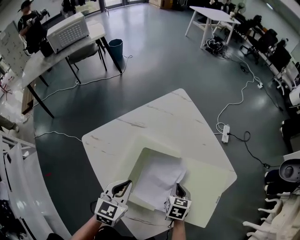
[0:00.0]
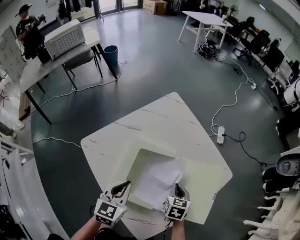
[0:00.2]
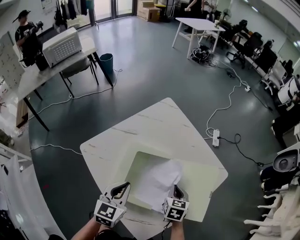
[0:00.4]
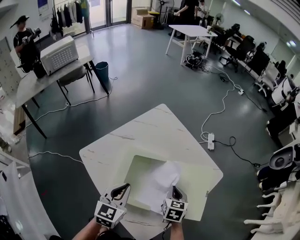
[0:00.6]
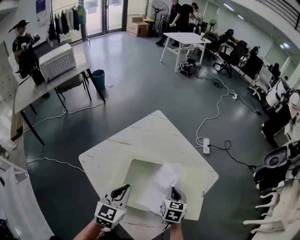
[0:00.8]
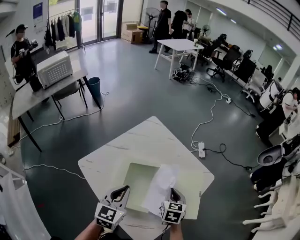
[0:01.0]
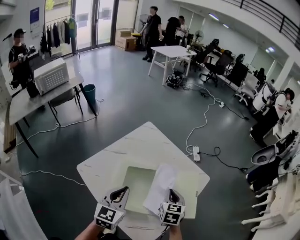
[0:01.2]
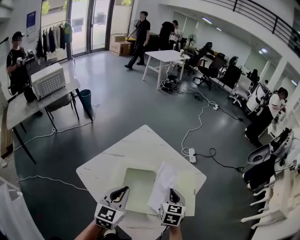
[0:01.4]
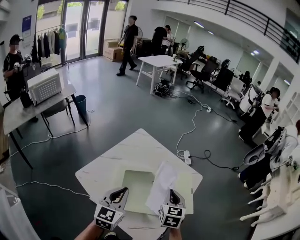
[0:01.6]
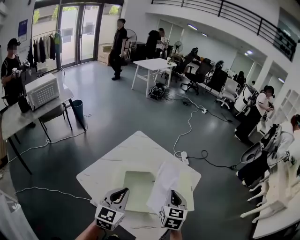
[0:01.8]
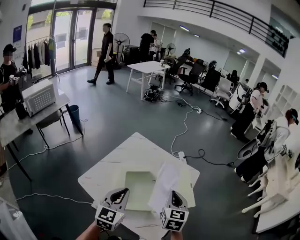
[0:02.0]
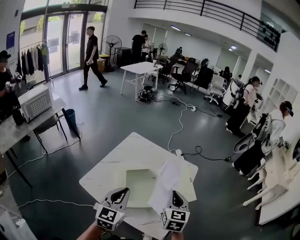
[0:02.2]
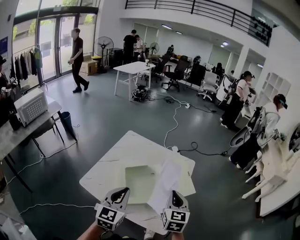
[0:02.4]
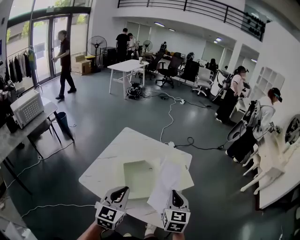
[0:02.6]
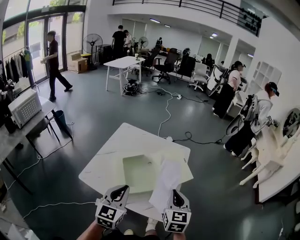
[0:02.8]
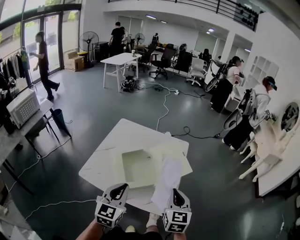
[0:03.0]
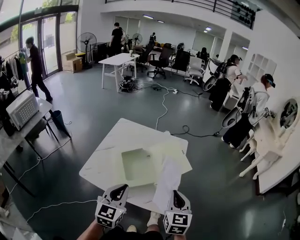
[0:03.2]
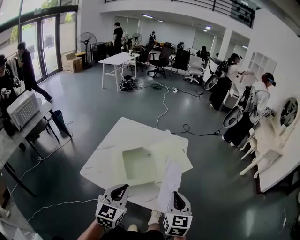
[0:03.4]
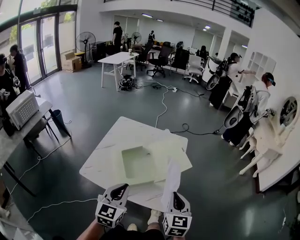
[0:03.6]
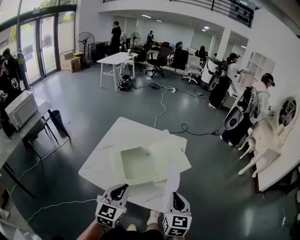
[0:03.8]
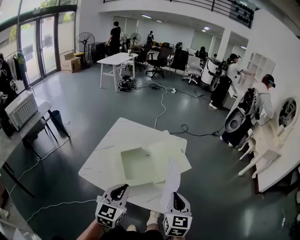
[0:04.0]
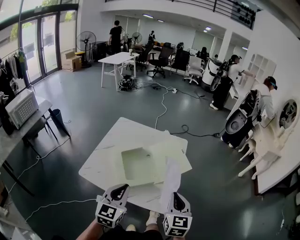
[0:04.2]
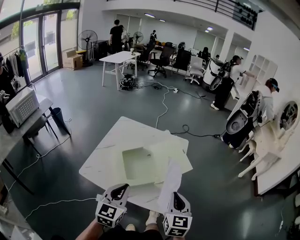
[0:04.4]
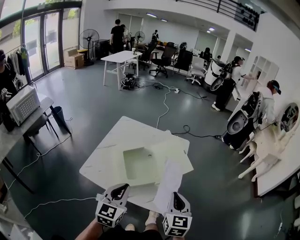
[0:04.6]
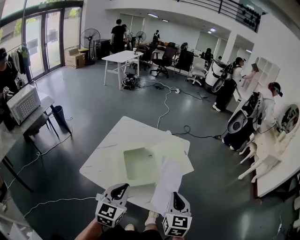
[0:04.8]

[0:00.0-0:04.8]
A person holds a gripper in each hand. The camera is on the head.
0:00.0 to 0:01.6: The two grippers go approximately 25 cm upward. The left gripper changes its angle by approximately 20 degrees, while the right gripper rotates approximately 30 degrees.
0:01.6 to 0:03.2: The right gripper shifts roughly 30 cm backward. The left gripper travels backward by some 20 cm.
0:03.2 to 0:04.8: There are only small adjustments of the grippers.

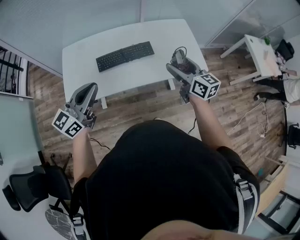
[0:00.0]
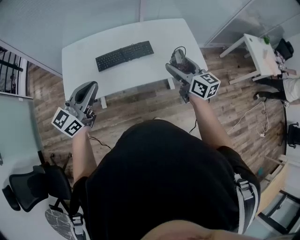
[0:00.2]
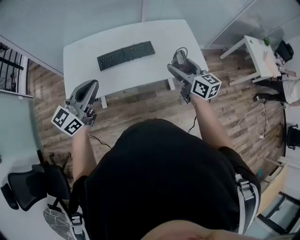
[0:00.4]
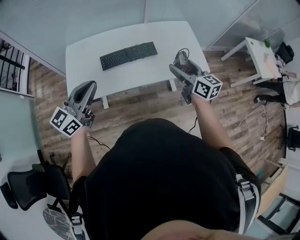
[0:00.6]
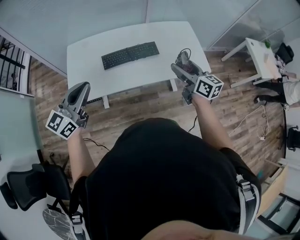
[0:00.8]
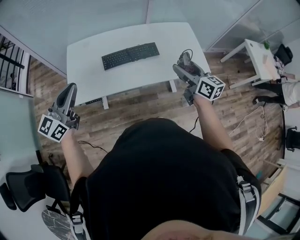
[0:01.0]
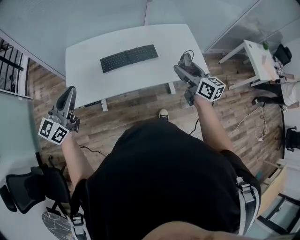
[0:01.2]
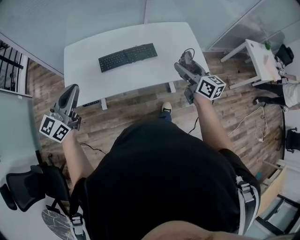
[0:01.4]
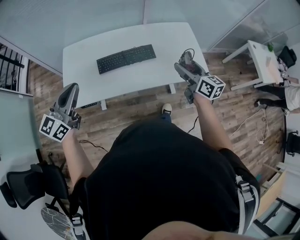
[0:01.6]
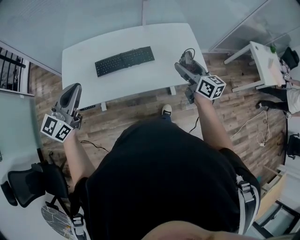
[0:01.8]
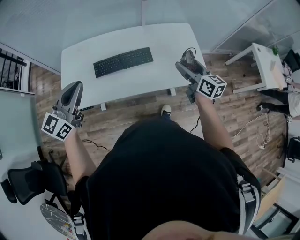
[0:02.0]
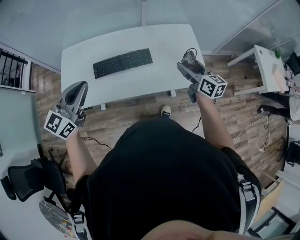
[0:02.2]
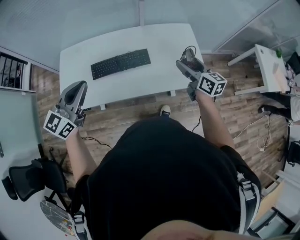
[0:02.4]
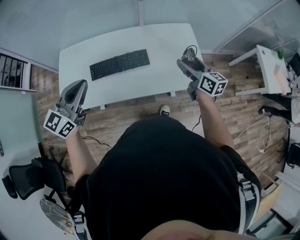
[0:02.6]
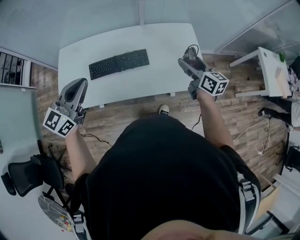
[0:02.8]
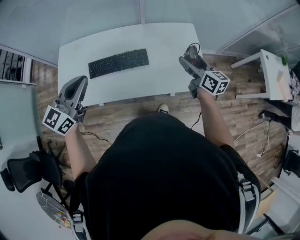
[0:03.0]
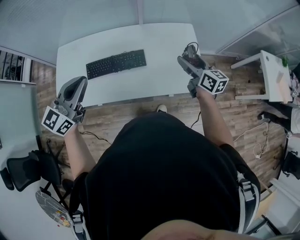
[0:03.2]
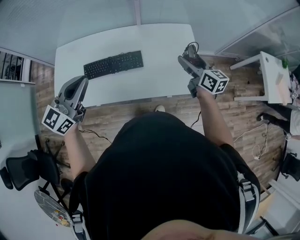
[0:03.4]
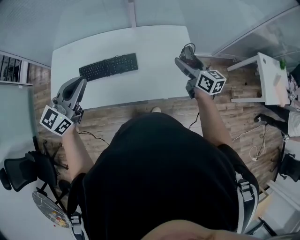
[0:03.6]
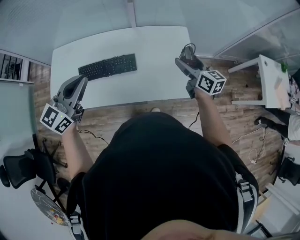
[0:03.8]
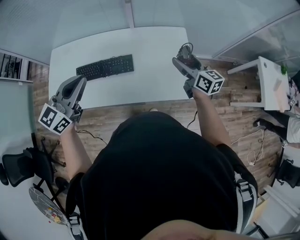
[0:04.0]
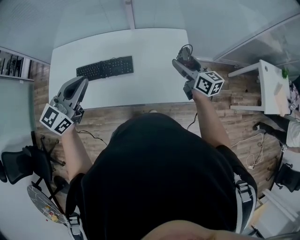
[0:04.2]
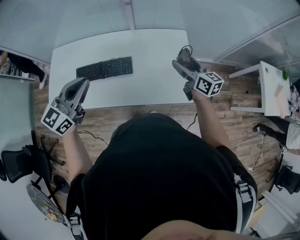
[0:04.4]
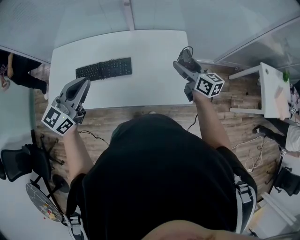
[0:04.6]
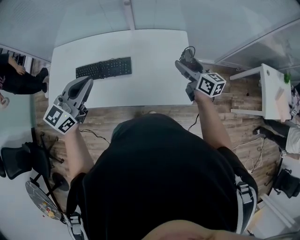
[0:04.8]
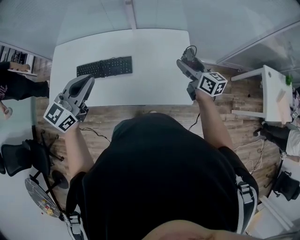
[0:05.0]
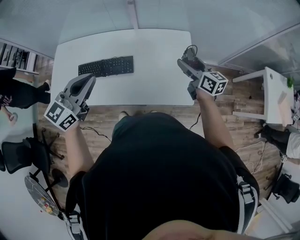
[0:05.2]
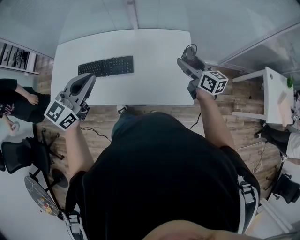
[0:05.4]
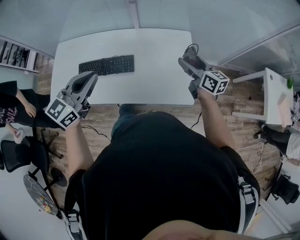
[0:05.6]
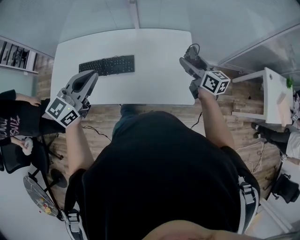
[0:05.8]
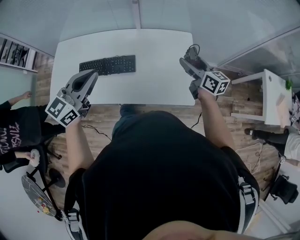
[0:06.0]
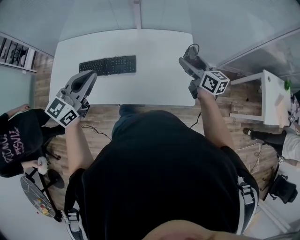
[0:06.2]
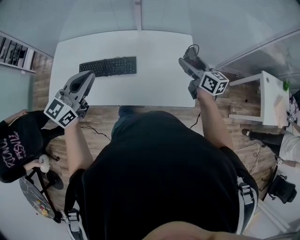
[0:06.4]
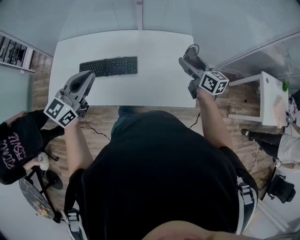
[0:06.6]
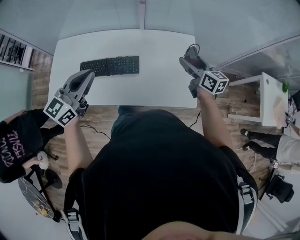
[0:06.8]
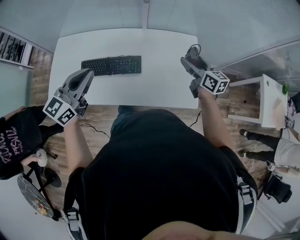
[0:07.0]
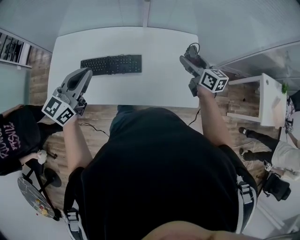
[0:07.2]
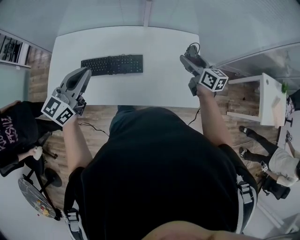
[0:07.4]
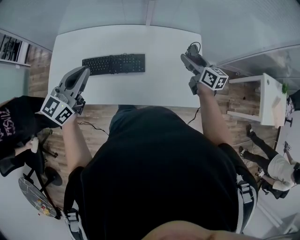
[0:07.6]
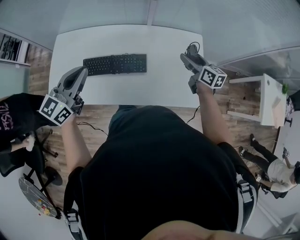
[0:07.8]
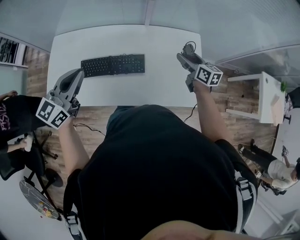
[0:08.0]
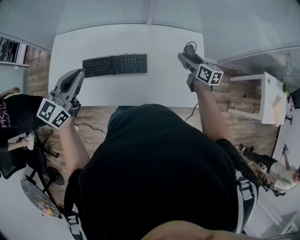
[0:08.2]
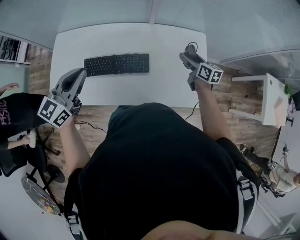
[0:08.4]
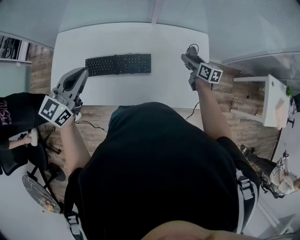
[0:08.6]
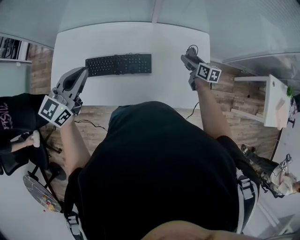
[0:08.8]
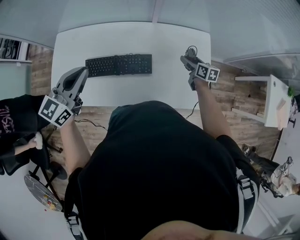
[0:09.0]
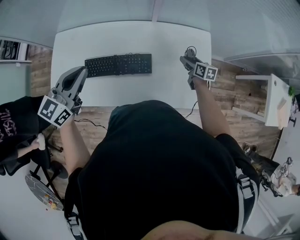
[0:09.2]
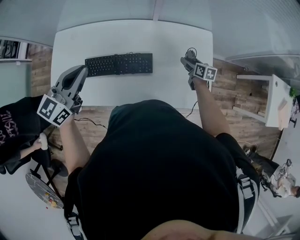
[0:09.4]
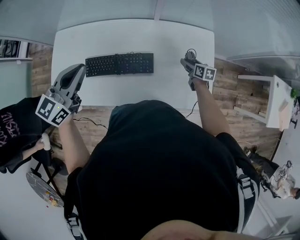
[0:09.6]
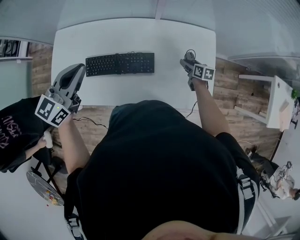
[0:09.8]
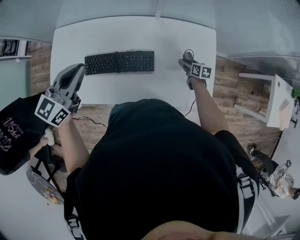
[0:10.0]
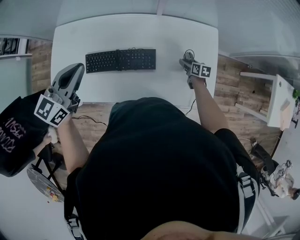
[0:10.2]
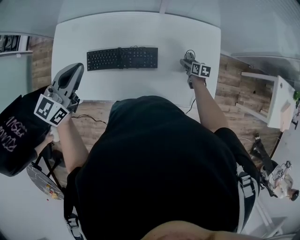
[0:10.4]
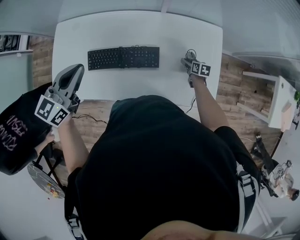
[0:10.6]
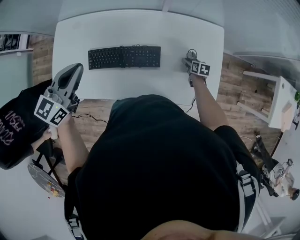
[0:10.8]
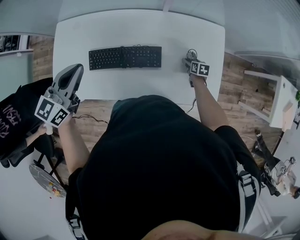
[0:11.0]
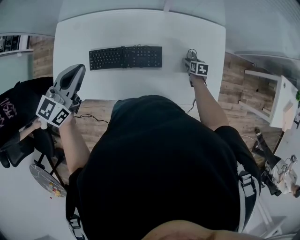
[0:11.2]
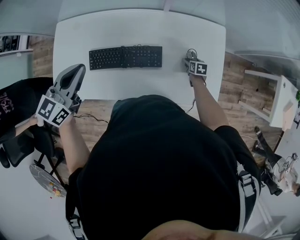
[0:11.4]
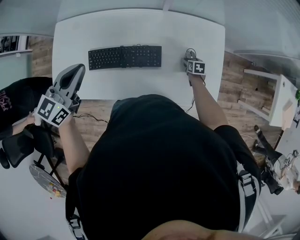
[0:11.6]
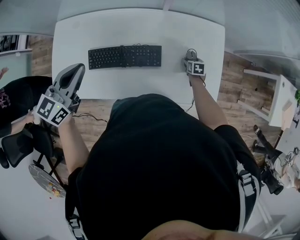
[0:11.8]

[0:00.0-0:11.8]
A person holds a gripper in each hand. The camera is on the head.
0:00.0 to 0:01.4: The left gripper moves to the left, roughly 10 cm.
0:01.4 to 0:03.0: The left gripper goes some 25 cm to the right and forward. Meanwhile the right gripper goes roughly 25 cm forward and to the right.
0:03.0 to 0:04.4: The right gripper moves to the right and forward, some 15 cm. Meanwhile the left gripper heads to the right, covering some 15 cm.
0:04.4 to 0:06.0: The grippers move only a little.
0:06.0 to 0:07.4: The grippers both shift to the left and forward by approximately 15 cm.
0:07.4 to 0:08.8: The right gripper heads downward and forward, covering approximately 15 cm.
0:08.8 to 0:10.4: The left gripper moves roughly 5 cm. Meanwhile the right gripper travels downward by approximately 20 cm, and changes its angle by about 20 degrees.
0:10.4 to 0:11.8: There are only small adjustments of the grippers.

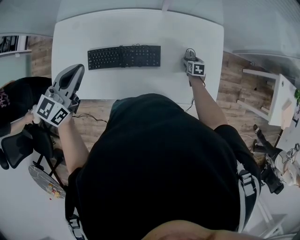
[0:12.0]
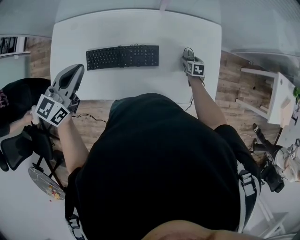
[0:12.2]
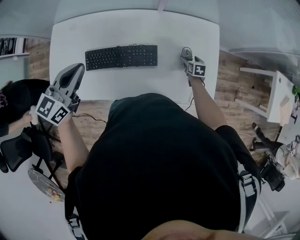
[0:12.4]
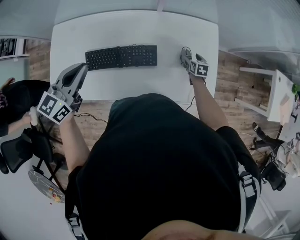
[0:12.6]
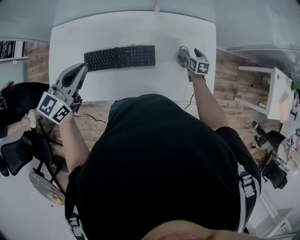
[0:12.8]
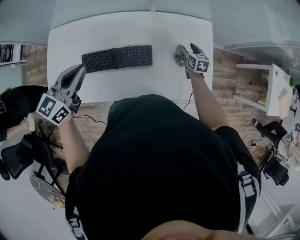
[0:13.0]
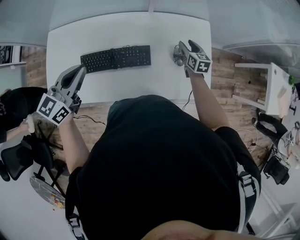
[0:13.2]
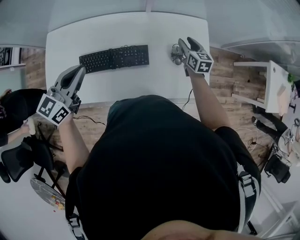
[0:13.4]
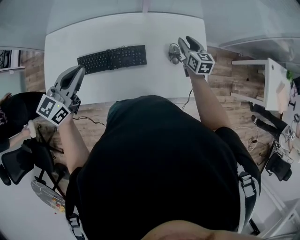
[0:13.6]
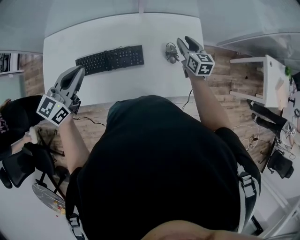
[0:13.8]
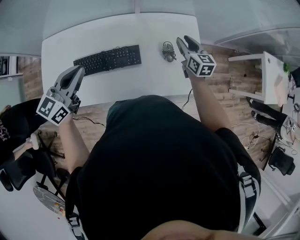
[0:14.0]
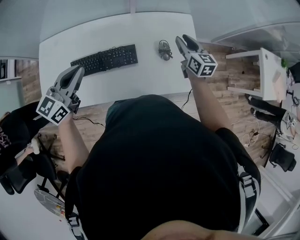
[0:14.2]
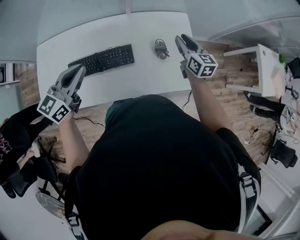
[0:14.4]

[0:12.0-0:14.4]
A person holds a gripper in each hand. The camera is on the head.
0:12.0 to 0:13.2: The right gripper shifts roughly 20 cm upward, swivels roughly 30 degrees, and closes up.
0:13.2 to 0:14.4: The right gripper moves upward, backward and to the right, about 15 cm. Meanwhile the left gripper shifts roughly 10 cm to the right.

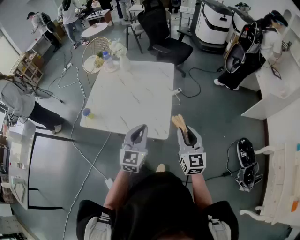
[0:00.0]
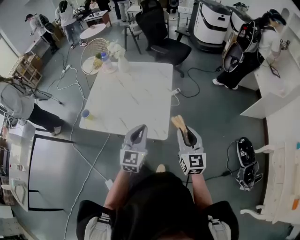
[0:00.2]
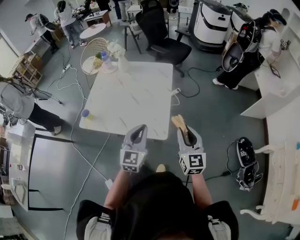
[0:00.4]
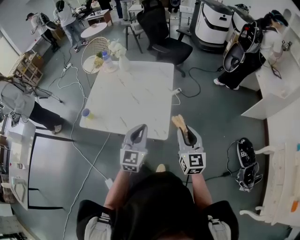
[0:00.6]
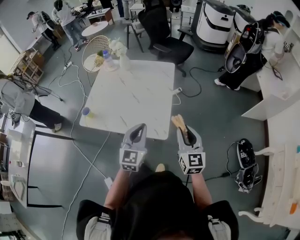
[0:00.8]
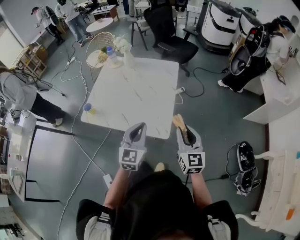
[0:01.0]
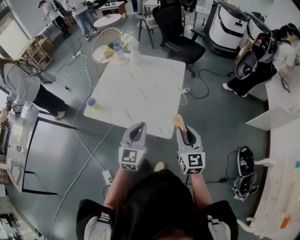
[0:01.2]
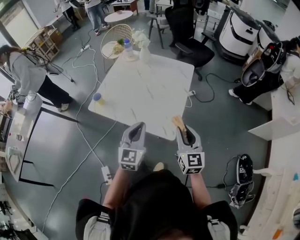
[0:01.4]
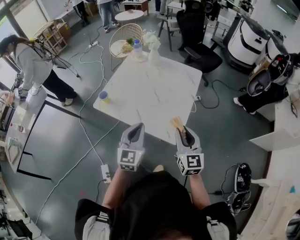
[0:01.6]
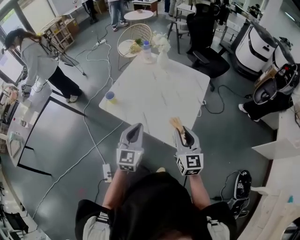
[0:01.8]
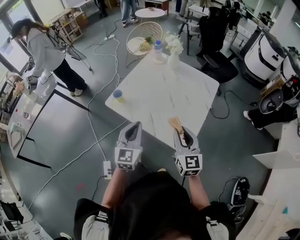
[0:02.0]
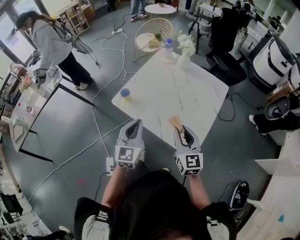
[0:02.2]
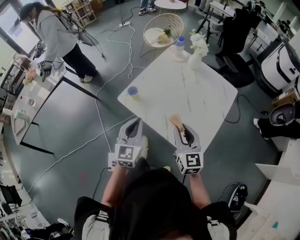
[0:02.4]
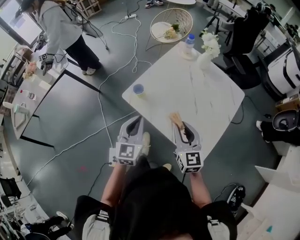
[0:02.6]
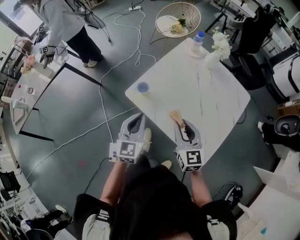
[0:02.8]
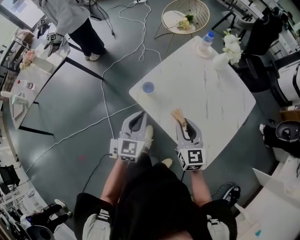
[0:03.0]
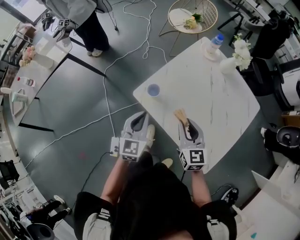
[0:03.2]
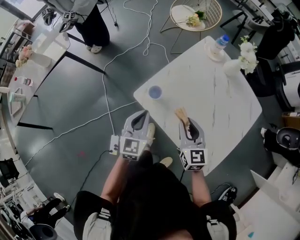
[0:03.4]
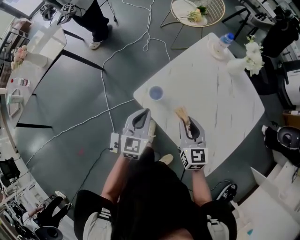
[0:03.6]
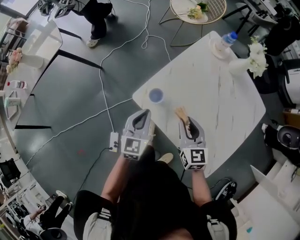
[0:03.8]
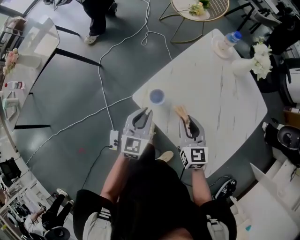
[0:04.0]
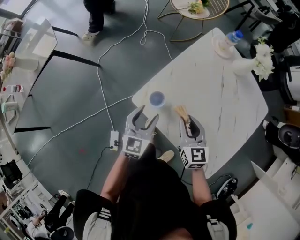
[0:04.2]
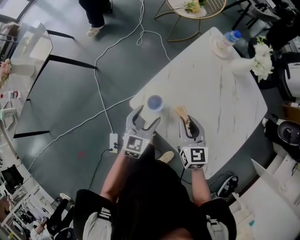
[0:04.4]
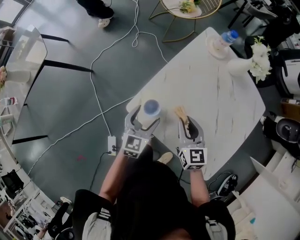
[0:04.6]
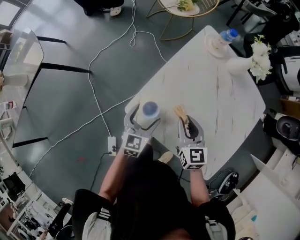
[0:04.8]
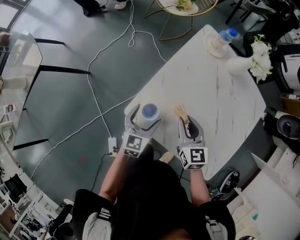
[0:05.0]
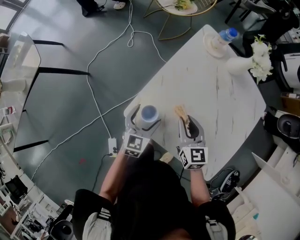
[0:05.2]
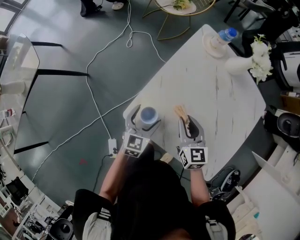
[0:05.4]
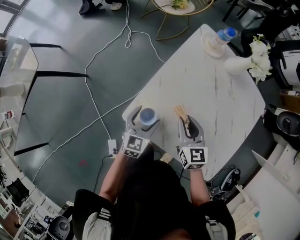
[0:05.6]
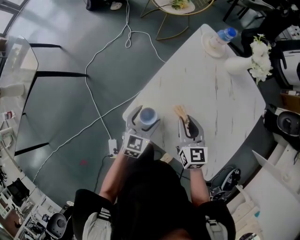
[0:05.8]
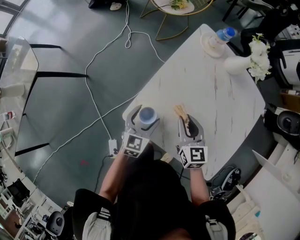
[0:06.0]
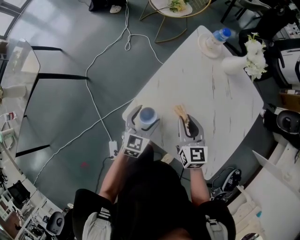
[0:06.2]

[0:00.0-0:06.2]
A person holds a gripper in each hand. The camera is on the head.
0:00.0 to 0:01.6: Both grippers move to the left, about 10 cm.
0:01.6 to 0:03.2: The left gripper moves to the left and forward, approximately 35 cm, and changes its angle by roughly 20 degrees; the right gripper travels forward and to the left by about 35 cm, and rotates roughly 30 degrees.
0:03.2 to 0:04.6: The right gripper shifts some 15 cm forward and downward. Meanwhile the left gripper travels downward and forward by some 20 cm, and opens.
0:04.6 to 0:06.2: The grippers stay close to where they were, moving slightly.
